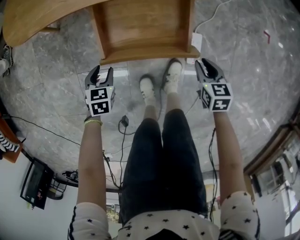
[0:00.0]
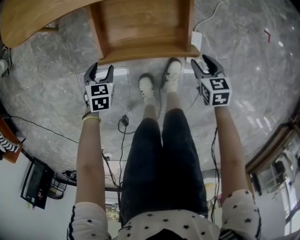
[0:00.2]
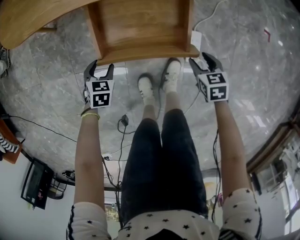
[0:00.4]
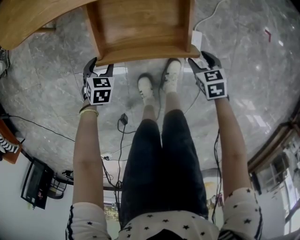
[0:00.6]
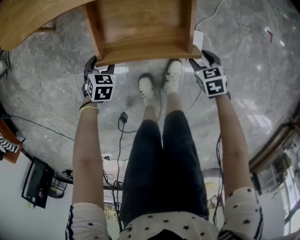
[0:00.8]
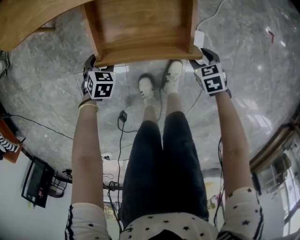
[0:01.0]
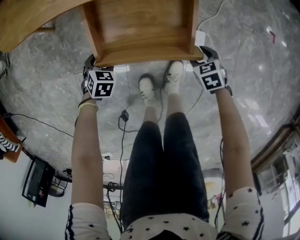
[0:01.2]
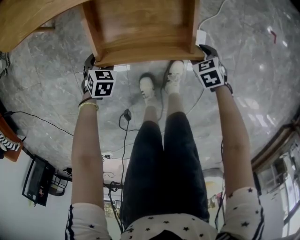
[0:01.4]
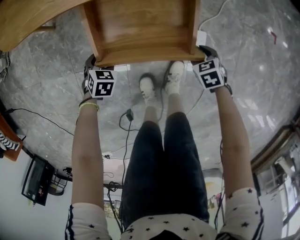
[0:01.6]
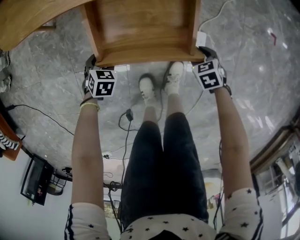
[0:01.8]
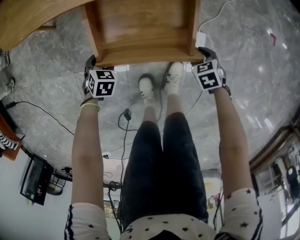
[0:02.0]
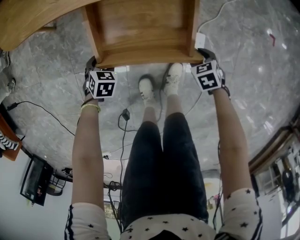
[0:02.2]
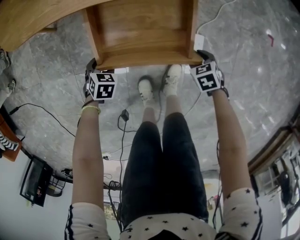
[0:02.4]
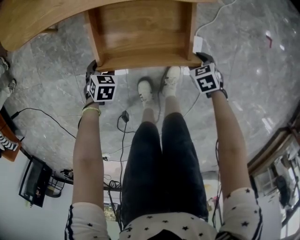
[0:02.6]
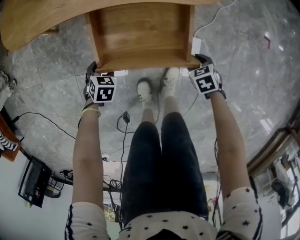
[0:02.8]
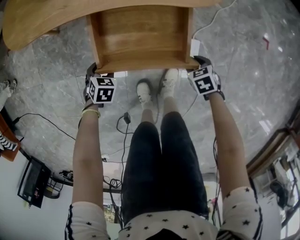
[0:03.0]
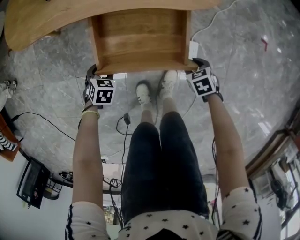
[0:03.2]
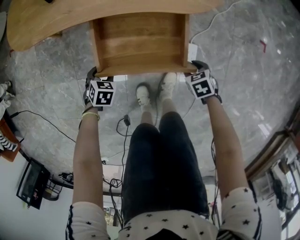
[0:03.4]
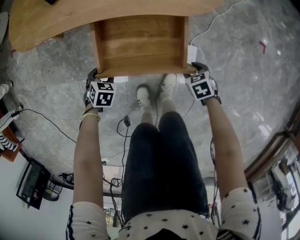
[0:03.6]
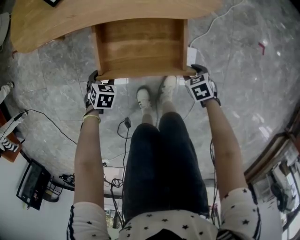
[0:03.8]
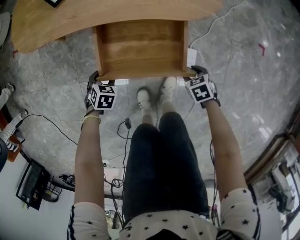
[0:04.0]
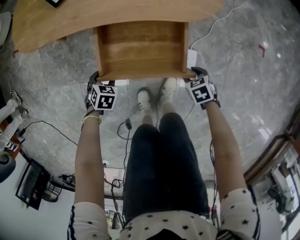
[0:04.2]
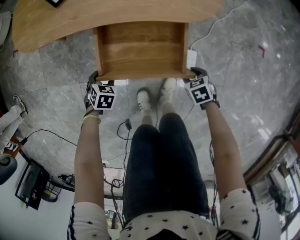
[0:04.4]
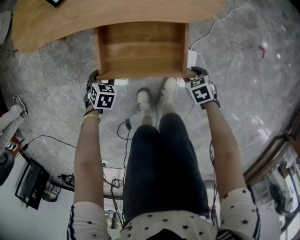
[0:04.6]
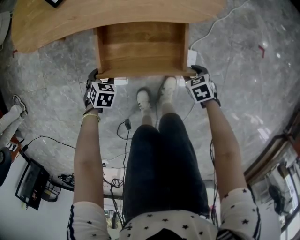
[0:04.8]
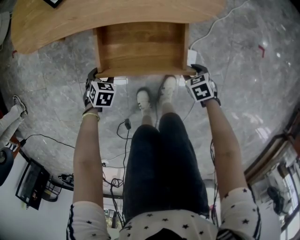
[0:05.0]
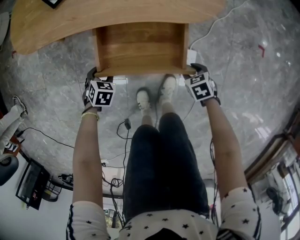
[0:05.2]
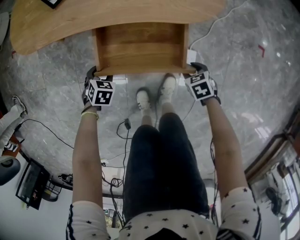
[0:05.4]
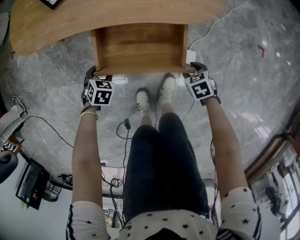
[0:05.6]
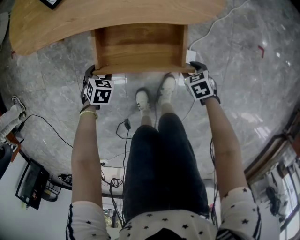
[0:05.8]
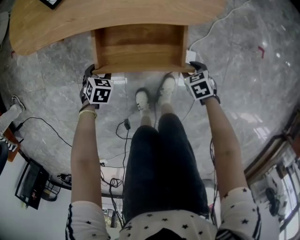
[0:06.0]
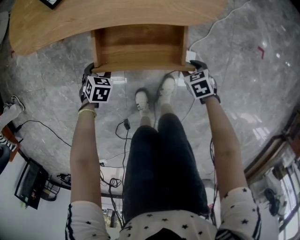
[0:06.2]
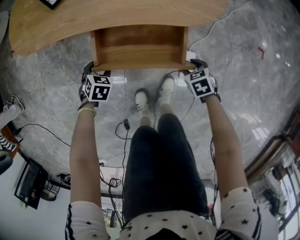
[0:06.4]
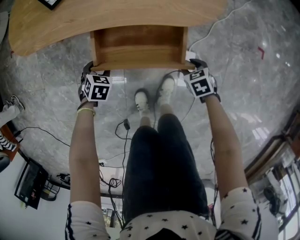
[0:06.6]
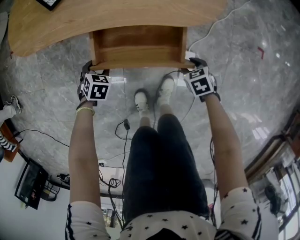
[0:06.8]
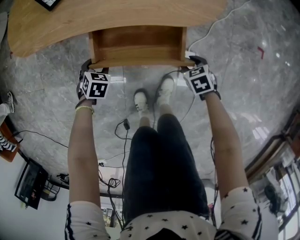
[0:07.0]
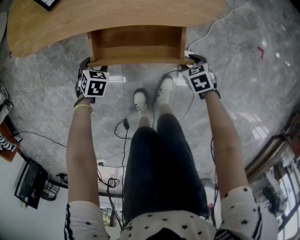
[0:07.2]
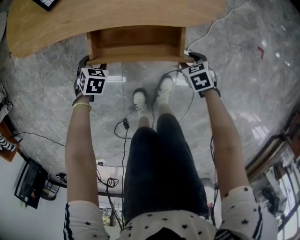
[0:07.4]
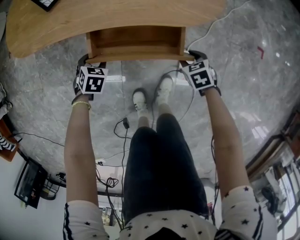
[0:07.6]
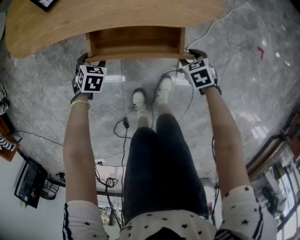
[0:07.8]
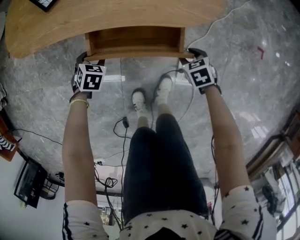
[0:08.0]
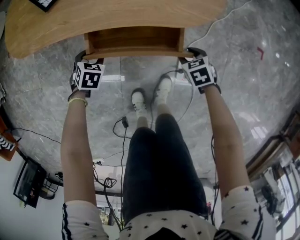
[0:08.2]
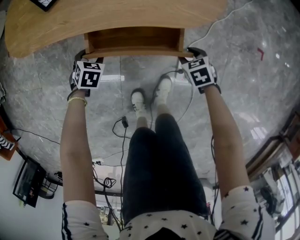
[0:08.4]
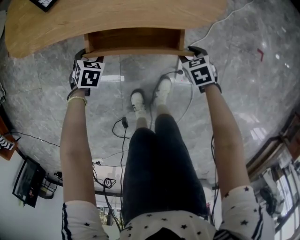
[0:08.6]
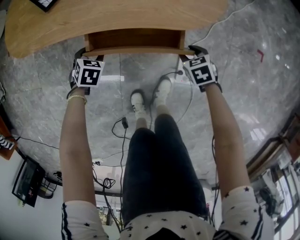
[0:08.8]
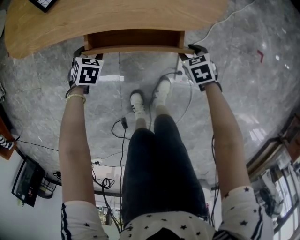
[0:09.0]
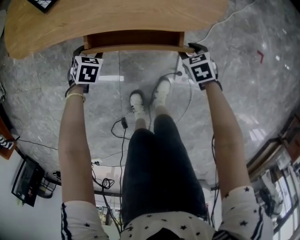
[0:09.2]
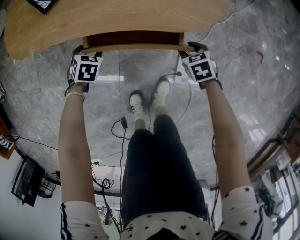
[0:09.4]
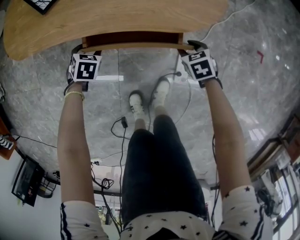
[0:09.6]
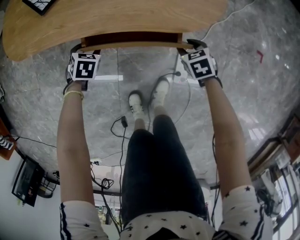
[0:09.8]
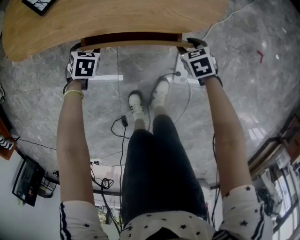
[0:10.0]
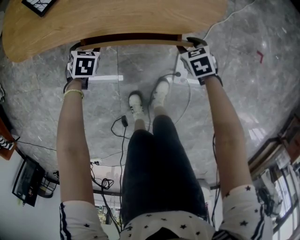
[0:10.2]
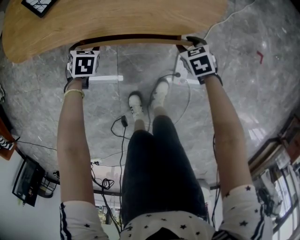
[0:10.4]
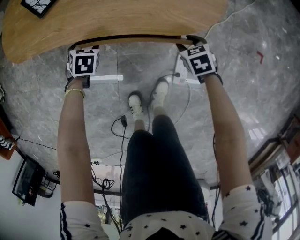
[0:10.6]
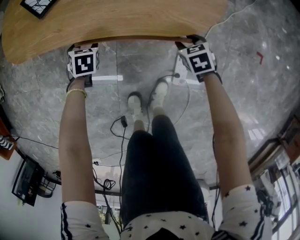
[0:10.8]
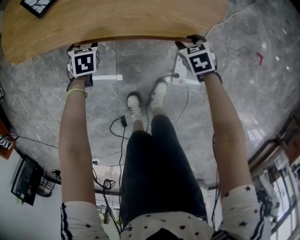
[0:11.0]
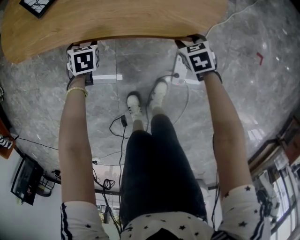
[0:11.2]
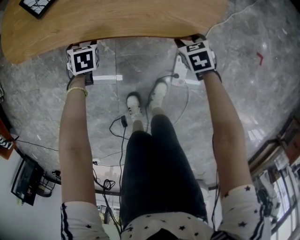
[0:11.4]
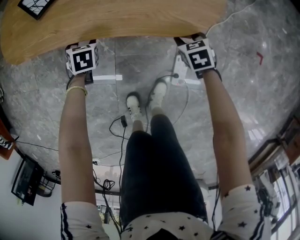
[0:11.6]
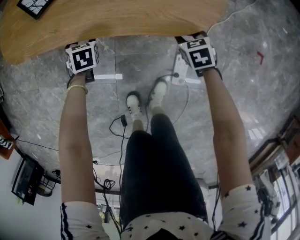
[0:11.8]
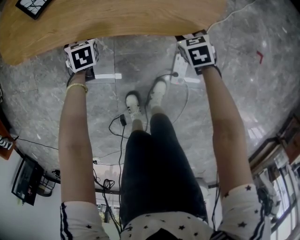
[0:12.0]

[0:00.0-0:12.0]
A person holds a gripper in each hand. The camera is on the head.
0:00.0 to 0:01.6: The left gripper heads downward, covering some 5 cm. Meanwhile the right gripper heads downward, covering some 10 cm, swivels some 30 degrees, and opens.
0:01.6 to 0:03.0: There are only small adjustments of the grippers.
0:03.0 to 0:06.0: There are only small adjustments of the grippers.
0:06.0 to 0:07.6: The left gripper moves approximately 5 cm, while the right gripper ends up roughly 5 cm from where it was.
0:07.6 to 0:09.0: The grippers make only small movements.
0:09.0 to 0:10.4: There are only small adjustments of the grippers.
0:10.4 to 0:12.0: The right gripper changes place by some 5 cm.

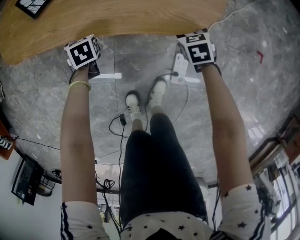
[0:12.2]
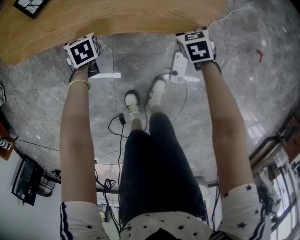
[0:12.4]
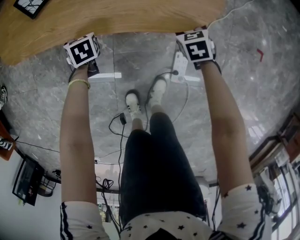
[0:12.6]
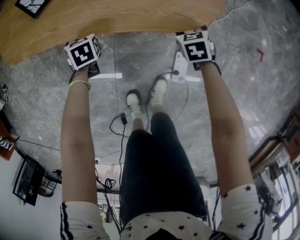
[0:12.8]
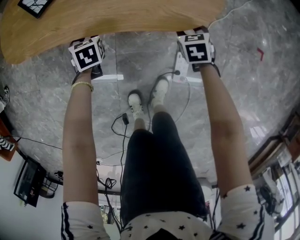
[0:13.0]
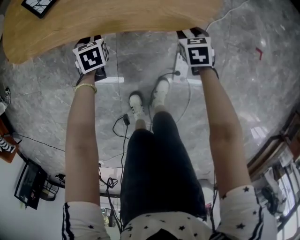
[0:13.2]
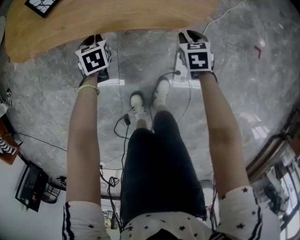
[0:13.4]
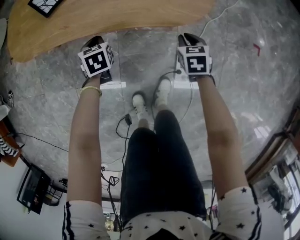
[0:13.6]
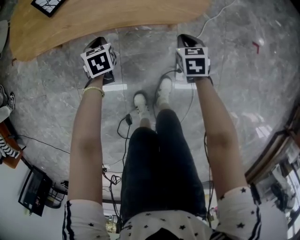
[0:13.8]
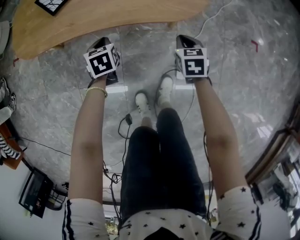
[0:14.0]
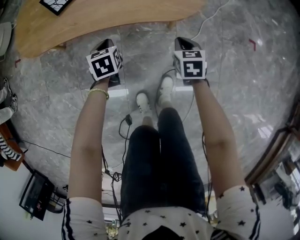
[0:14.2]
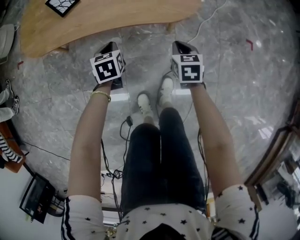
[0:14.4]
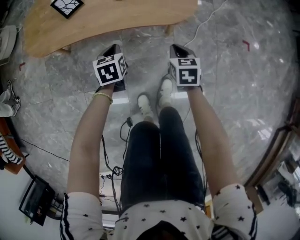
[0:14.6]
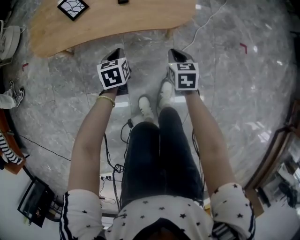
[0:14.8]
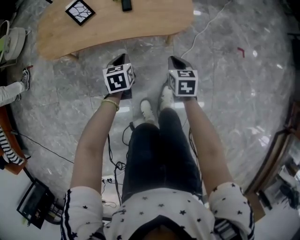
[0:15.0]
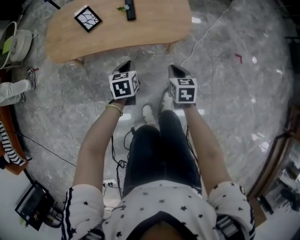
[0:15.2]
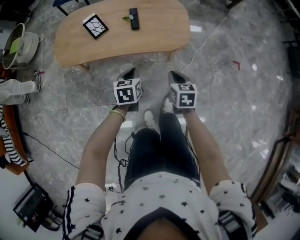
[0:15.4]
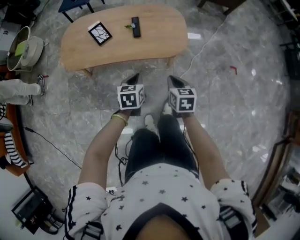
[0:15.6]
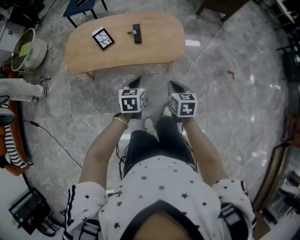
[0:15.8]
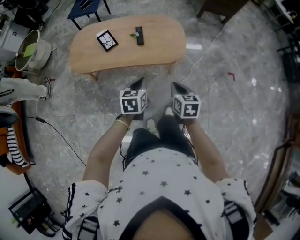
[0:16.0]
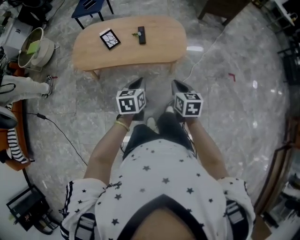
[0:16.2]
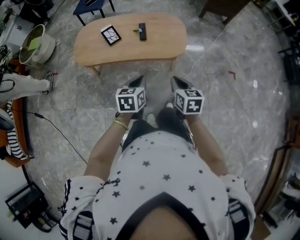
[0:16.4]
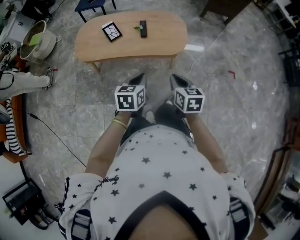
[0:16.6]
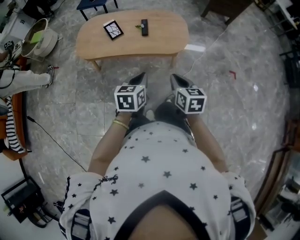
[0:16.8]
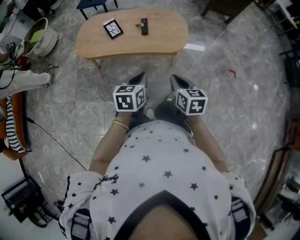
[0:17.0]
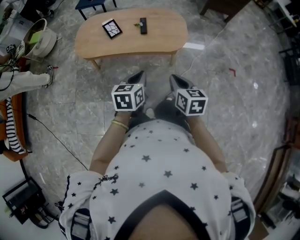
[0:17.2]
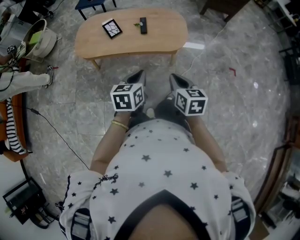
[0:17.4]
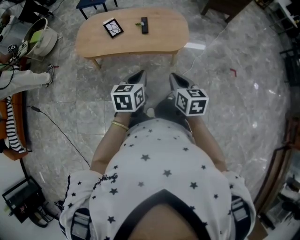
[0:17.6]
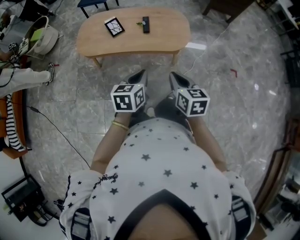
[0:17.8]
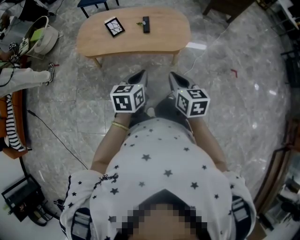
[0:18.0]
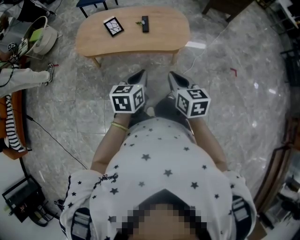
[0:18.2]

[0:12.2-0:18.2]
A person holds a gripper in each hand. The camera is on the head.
0:12.2 to 0:13.8: Both grippers travel together upward and backward, roughly 10 cm. The left gripper closes. Meanwhile the right gripper closes up.
0:13.8 to 0:15.2: The two grippers go about 20 cm upward and backward.
0:15.2 to 0:16.6: Both grippers travel together upward and backward, approximately 25 cm.
0:16.6 to 0:18.2: The right gripper moves approximately 5 cm.

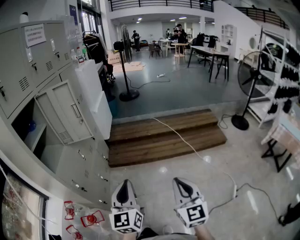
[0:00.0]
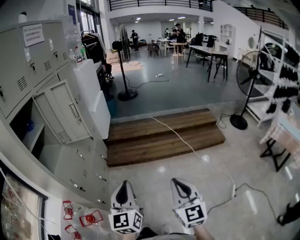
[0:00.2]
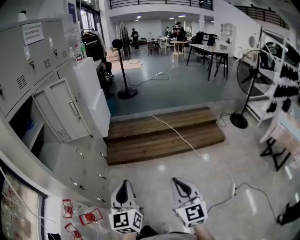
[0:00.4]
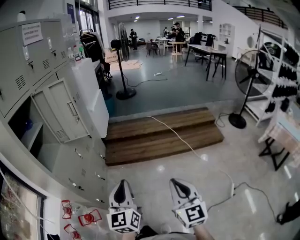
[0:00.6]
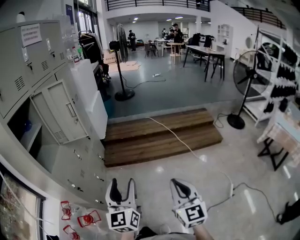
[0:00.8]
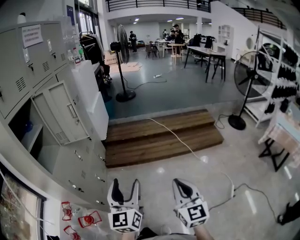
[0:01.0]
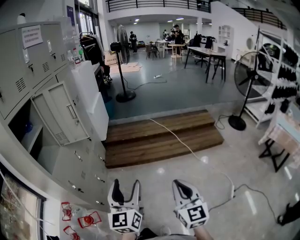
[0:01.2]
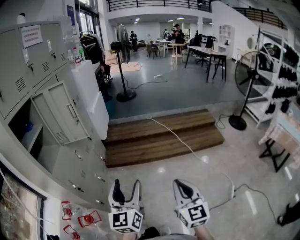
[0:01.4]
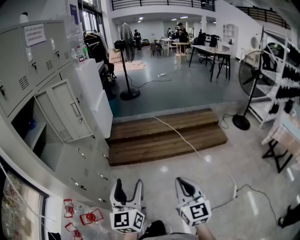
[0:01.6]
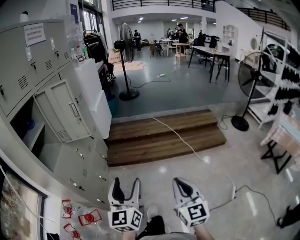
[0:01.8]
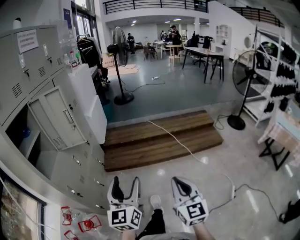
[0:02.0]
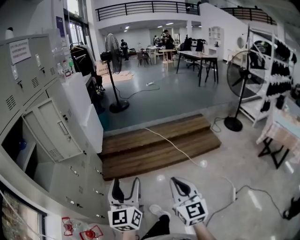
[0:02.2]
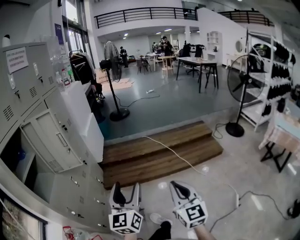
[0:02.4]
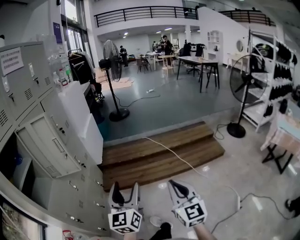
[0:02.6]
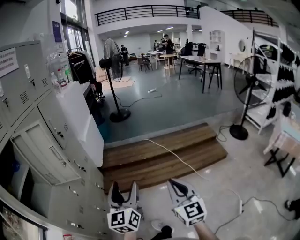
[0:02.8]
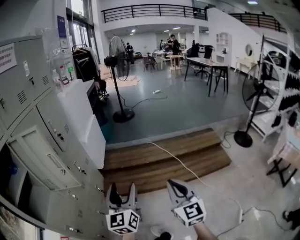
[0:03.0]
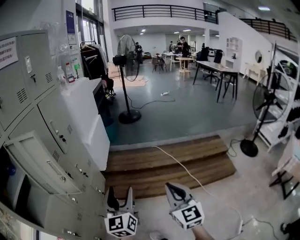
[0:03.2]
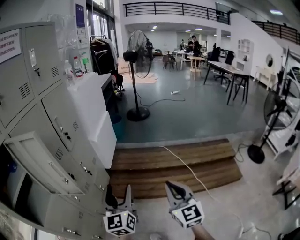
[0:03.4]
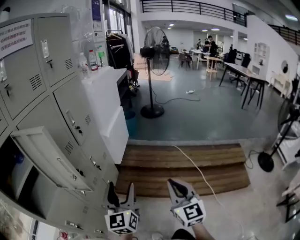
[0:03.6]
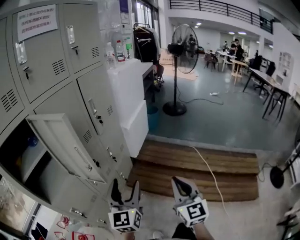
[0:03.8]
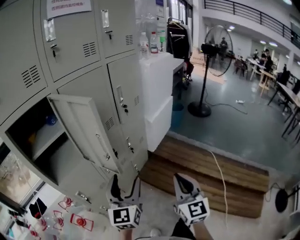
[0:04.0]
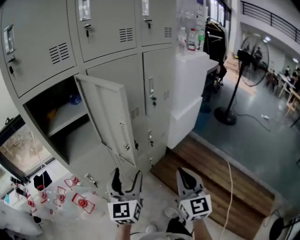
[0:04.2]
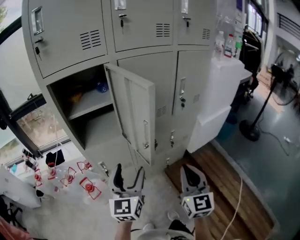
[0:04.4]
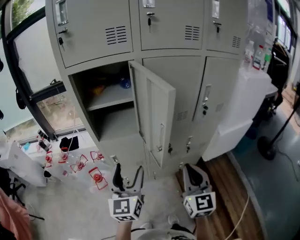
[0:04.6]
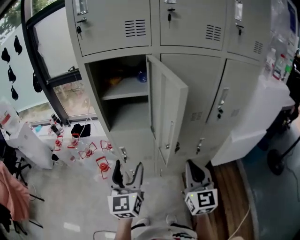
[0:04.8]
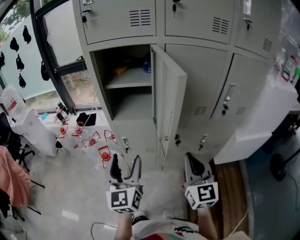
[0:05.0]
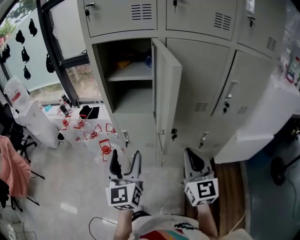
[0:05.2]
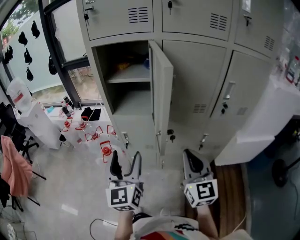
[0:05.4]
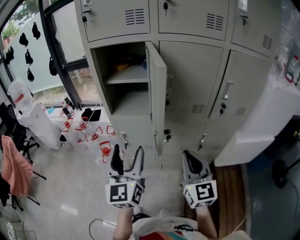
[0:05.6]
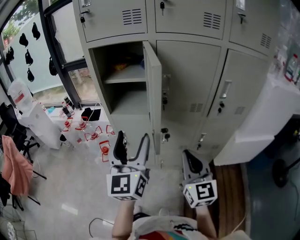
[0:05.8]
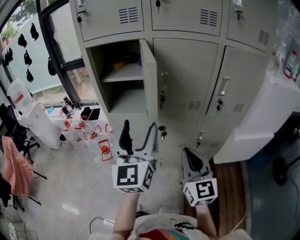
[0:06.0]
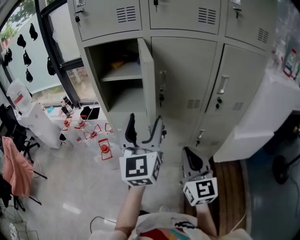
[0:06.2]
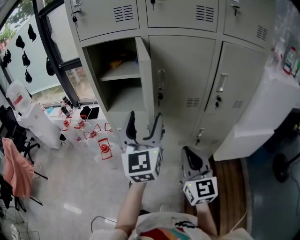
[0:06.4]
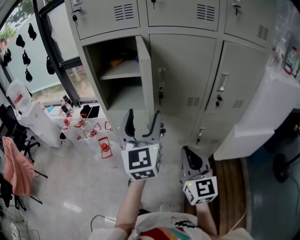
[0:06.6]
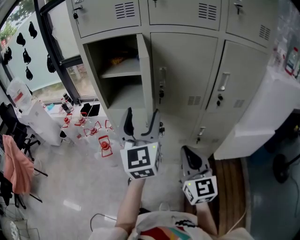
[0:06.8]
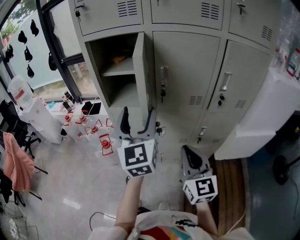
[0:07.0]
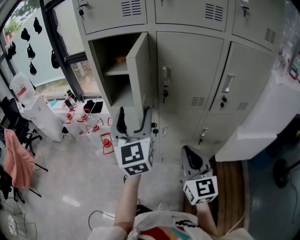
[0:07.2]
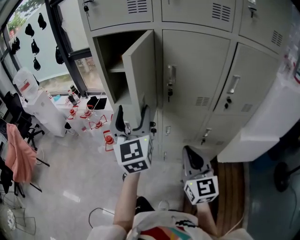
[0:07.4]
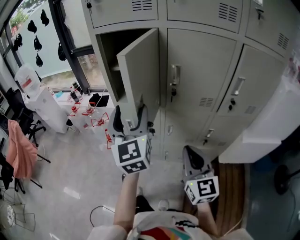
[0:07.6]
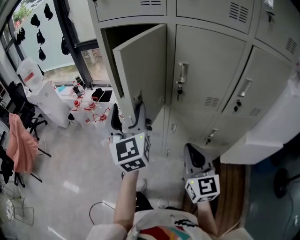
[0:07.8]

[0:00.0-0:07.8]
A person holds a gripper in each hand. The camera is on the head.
0:00.0 to 0:01.6: The left gripper opens.
0:01.6 to 0:03.2: Both grippers move forward, approximately 40 cm.
0:03.2 to 0:04.6: The left gripper moves some 25 cm, and turns by roughly 70 degrees. The right gripper moves approximately 40 cm, and swivels roughly 70 degrees.
0:04.6 to 0:06.2: The left gripper heads to the right and upward, covering roughly 15 cm. The right gripper changes place by approximately 5 cm, and swivels roughly 20 degrees.
0:06.2 to 0:07.8: The left gripper shifts roughly 10 cm to the left and forward, and swivels some 20 degrees.
